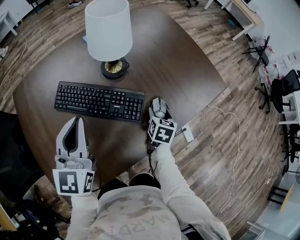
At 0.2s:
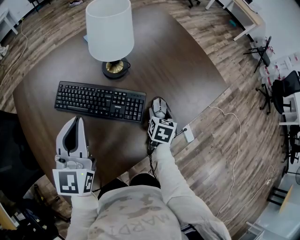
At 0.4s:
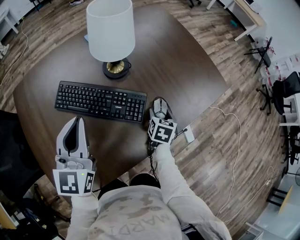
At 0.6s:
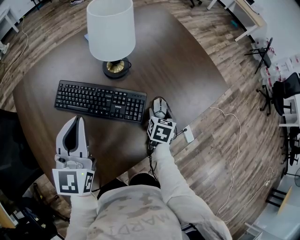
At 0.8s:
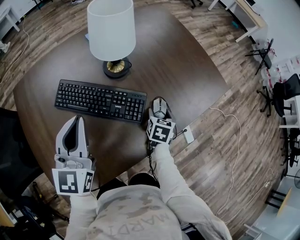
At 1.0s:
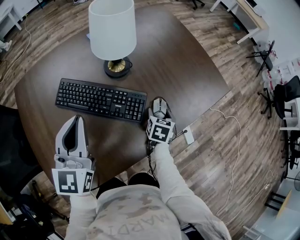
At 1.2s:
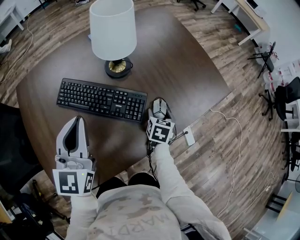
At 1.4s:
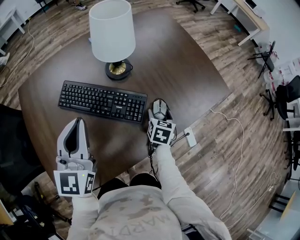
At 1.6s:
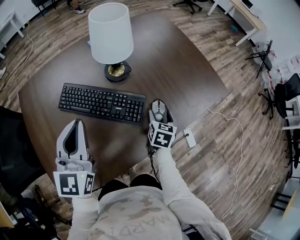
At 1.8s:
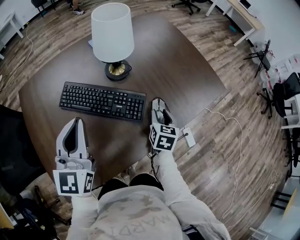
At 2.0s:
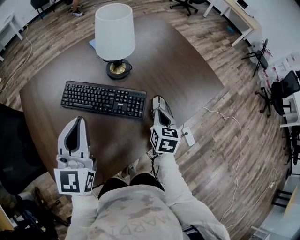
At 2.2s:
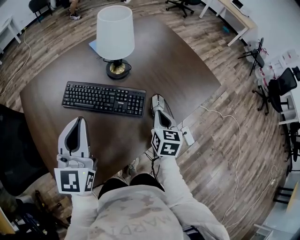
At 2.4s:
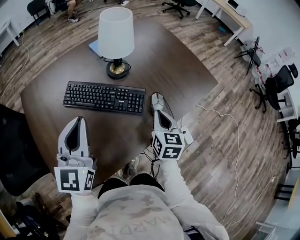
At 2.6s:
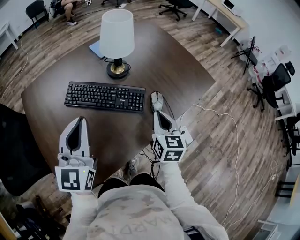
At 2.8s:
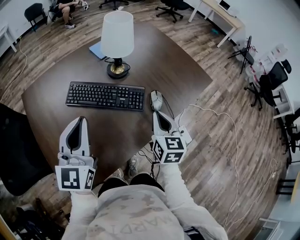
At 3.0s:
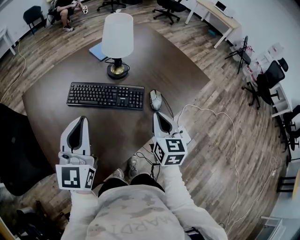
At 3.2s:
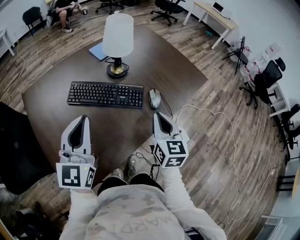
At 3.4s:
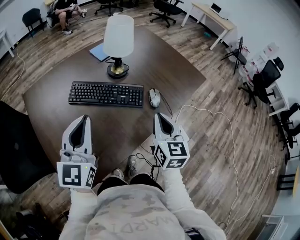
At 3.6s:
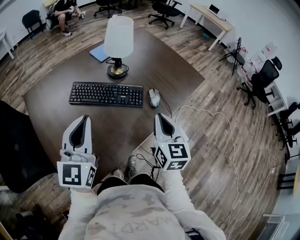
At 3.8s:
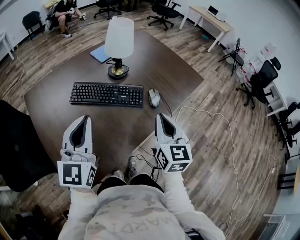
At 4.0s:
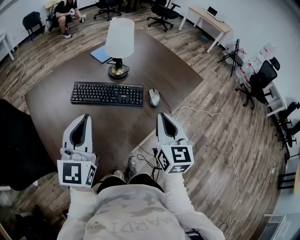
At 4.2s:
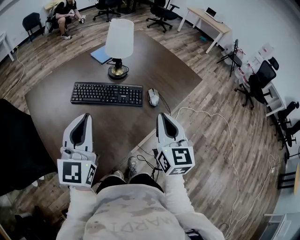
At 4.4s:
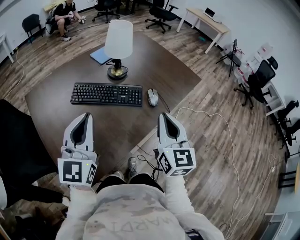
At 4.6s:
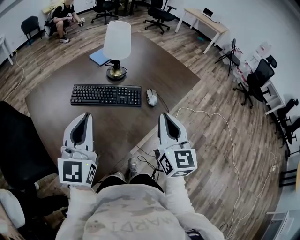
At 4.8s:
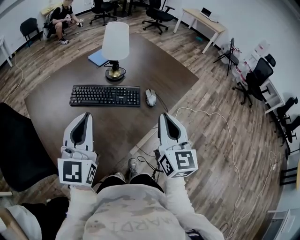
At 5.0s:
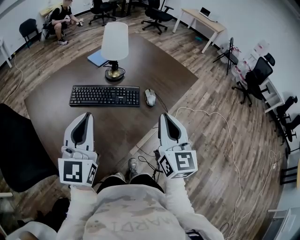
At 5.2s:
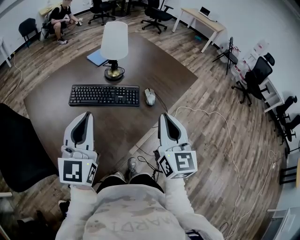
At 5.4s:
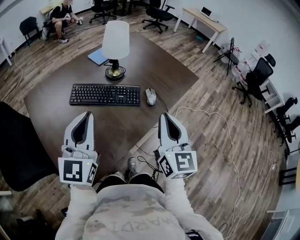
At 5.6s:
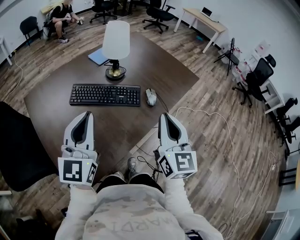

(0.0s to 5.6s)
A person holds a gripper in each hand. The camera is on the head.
0.0s - 1.4s: The grippers move only a little.
1.4s - 2.8s: The right gripper goes some 25 cm upward and backward, rotates roughly 30 degrees, and closes. Meanwhile the left gripper heads backward, covering roughly 10 cm.
2.8s - 4.2s: The left gripper goes about 10 cm backward; the right gripper is displaced backward and upward by some 15 cm.
4.2s - 5.6s: The grippers stay close to where they were, moving slightly.

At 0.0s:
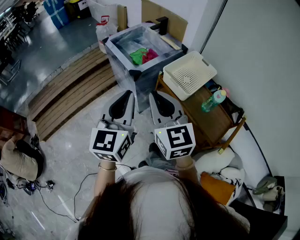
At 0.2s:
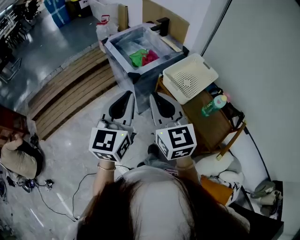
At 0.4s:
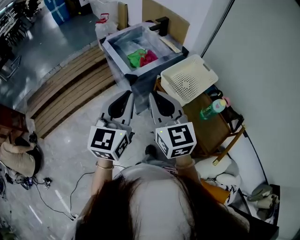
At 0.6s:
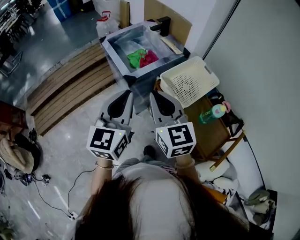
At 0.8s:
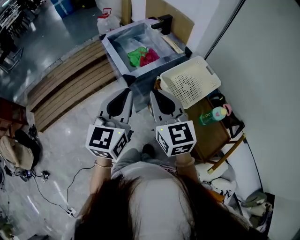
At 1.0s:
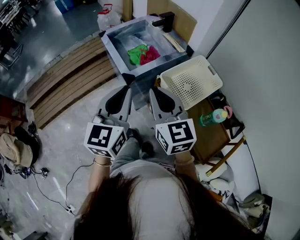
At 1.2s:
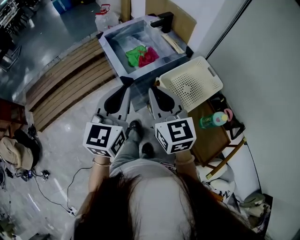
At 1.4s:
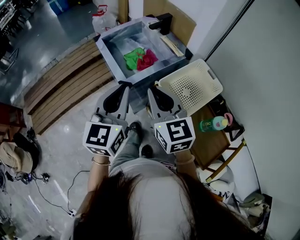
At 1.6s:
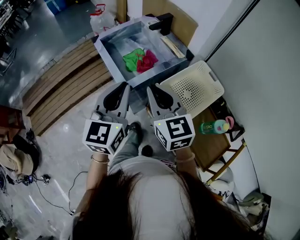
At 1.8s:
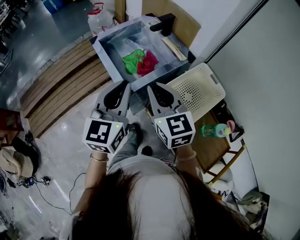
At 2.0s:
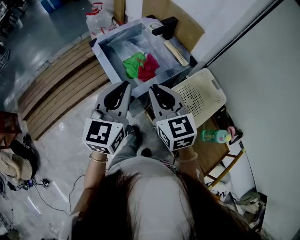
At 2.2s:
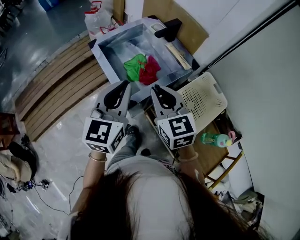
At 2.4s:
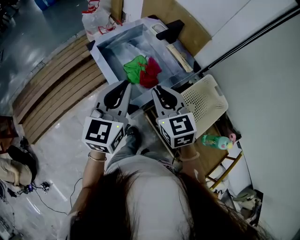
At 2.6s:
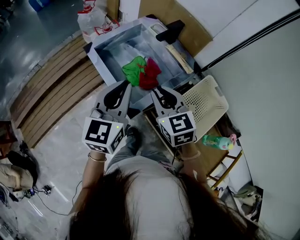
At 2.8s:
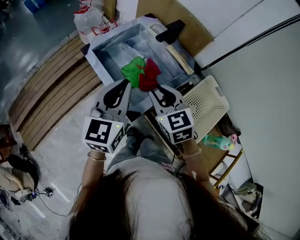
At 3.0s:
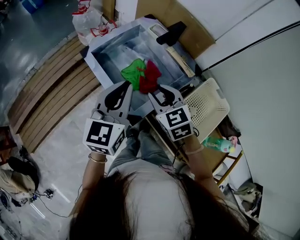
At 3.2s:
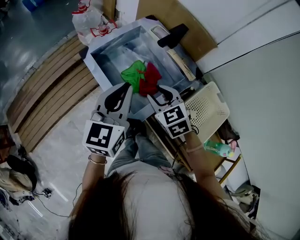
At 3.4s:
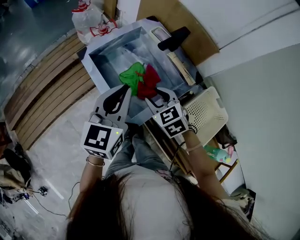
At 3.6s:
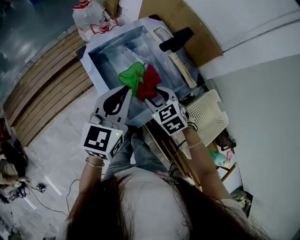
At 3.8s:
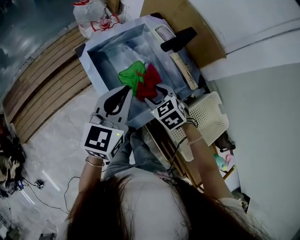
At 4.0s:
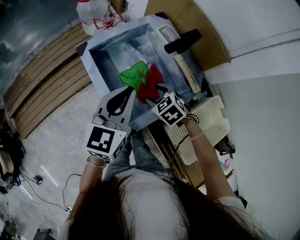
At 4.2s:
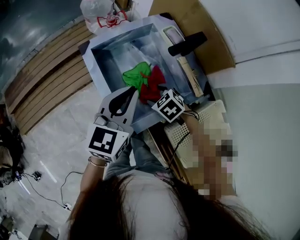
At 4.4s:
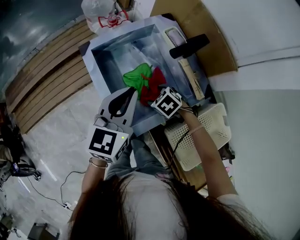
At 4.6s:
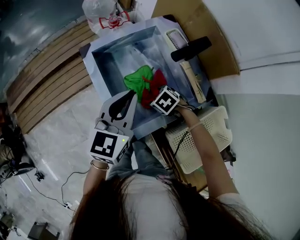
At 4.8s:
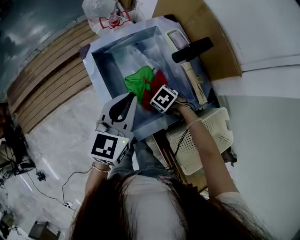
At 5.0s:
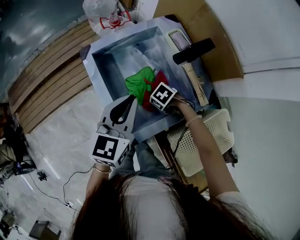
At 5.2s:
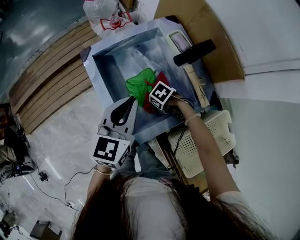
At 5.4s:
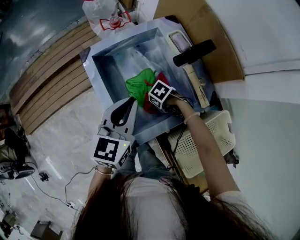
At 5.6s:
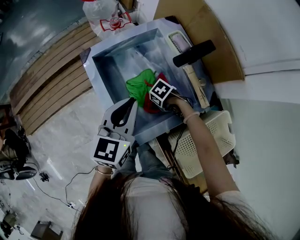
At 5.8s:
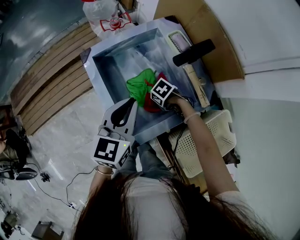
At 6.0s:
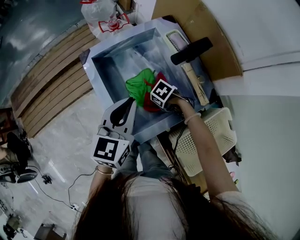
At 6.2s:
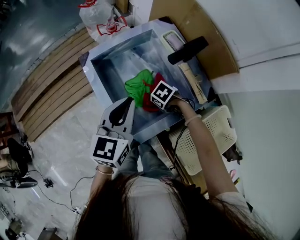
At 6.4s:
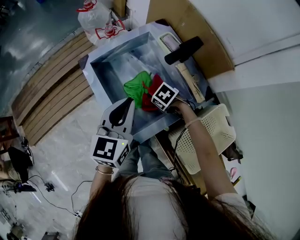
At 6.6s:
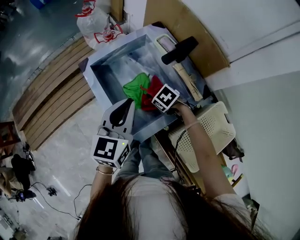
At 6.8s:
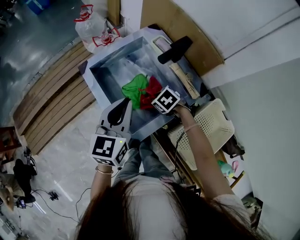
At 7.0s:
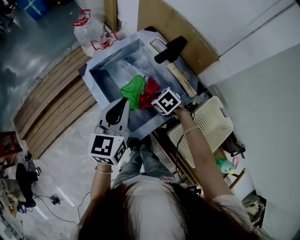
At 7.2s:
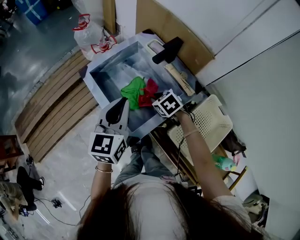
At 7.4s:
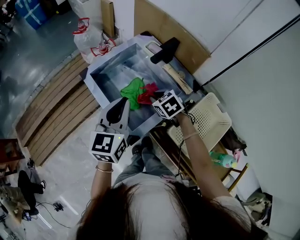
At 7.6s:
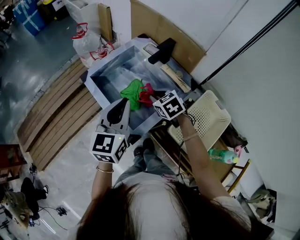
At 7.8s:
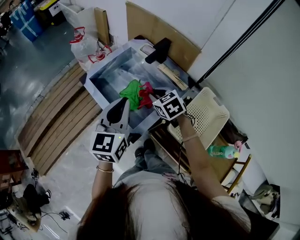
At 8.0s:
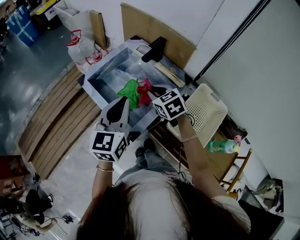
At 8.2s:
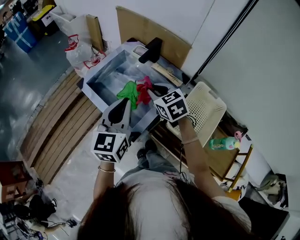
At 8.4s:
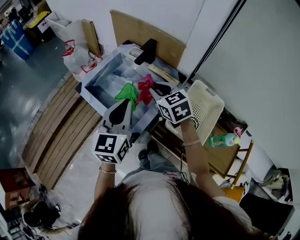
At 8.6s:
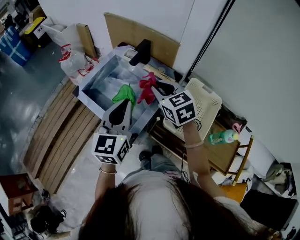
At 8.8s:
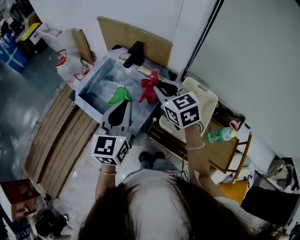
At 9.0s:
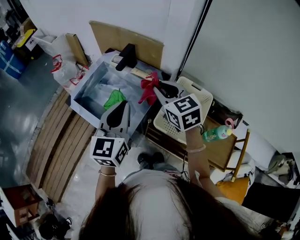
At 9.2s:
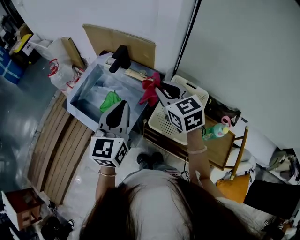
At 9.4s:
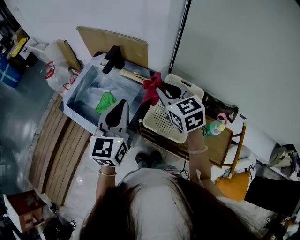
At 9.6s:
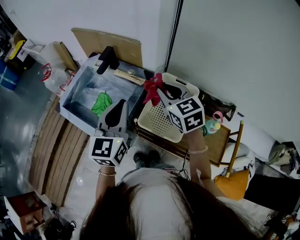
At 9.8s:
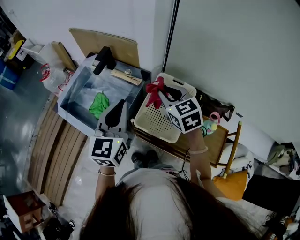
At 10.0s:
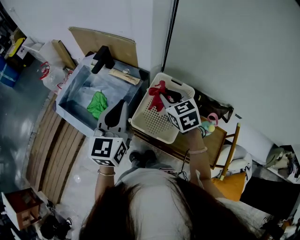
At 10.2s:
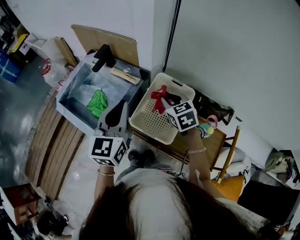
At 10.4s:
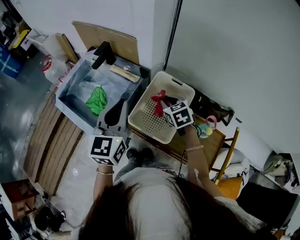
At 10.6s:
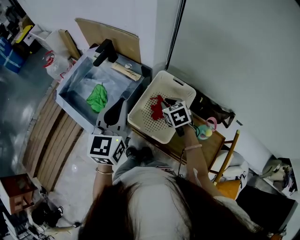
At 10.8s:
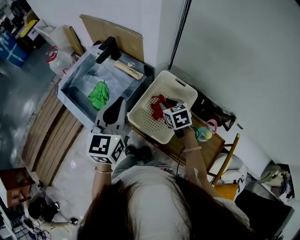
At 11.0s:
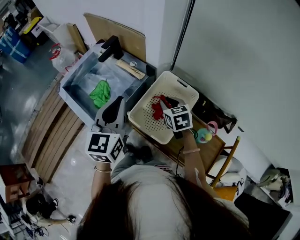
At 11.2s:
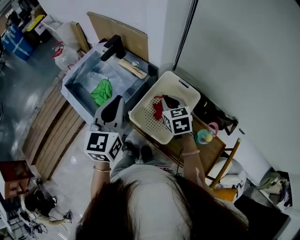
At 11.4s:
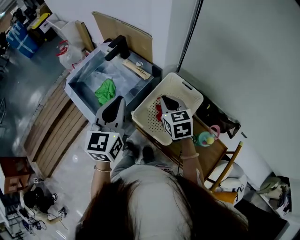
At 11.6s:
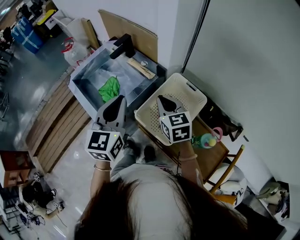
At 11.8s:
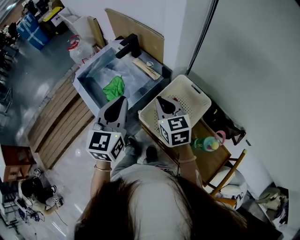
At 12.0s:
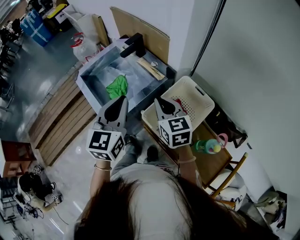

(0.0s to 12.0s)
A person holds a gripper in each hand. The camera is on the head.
0.0s - 1.6s: Both grippers move forward, about 25 cm.
1.6s - 3.0s: The right gripper travels forward and downward by about 25 cm, turns by some 30 degrees, and opens up. Meanwhile the left gripper travels forward by approximately 20 cm.
3.0s - 4.4s: The left gripper moves about 10 cm, while the right gripper is displaced downward by some 20 cm, angles its fingers downward, by approximately 40 degrees, and opens up.
4.4s - 6.0s: The right gripper goes roughly 10 cm downward, changes its angle by roughly 20 degrees, and closes its fingers.
6.0s - 7.6s: The left gripper travels upward by some 10 cm. Meanwhile the right gripper travels upward by about 20 cm, and rotates about 50 degrees.
7.6s - 9.0s: The right gripper shifts roughly 20 cm upward and to the right, and changes its angle by roughly 30 degrees; the left gripper moves to the right, about 10 cm.
9.0s - 10.4s: The left gripper travels to the right by some 15 cm; the right gripper goes about 25 cm to the right and downward, and rotates approximately 20 degrees.
10.4s - 12.0s: The right gripper moves to the left and upward, about 15 cm, and changes its angle by about 30 degrees, while the left gripper travels to the left by roughly 5 cm.

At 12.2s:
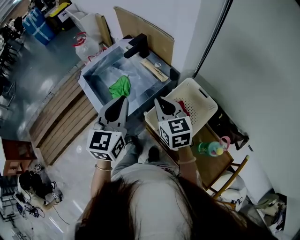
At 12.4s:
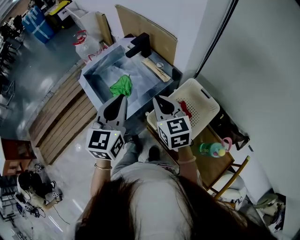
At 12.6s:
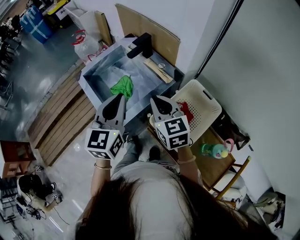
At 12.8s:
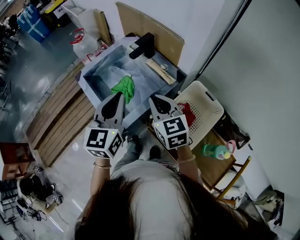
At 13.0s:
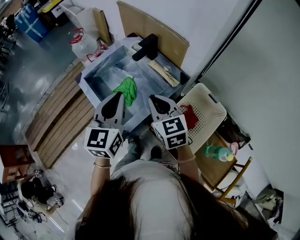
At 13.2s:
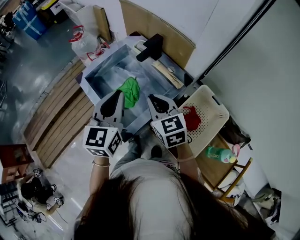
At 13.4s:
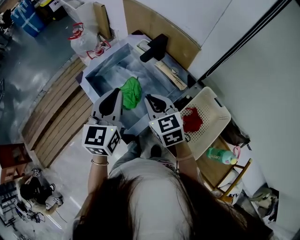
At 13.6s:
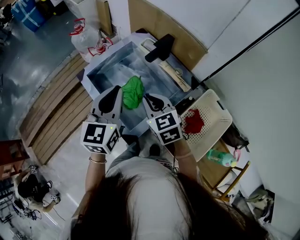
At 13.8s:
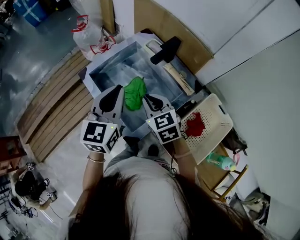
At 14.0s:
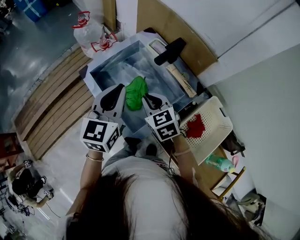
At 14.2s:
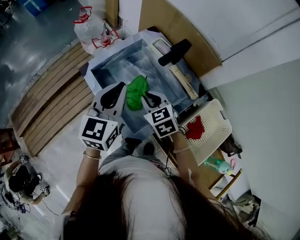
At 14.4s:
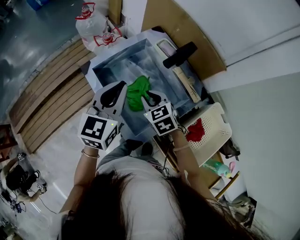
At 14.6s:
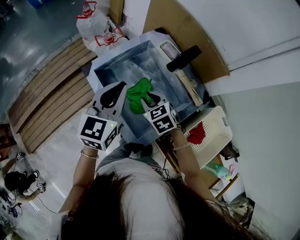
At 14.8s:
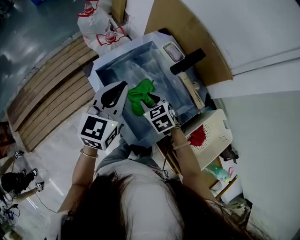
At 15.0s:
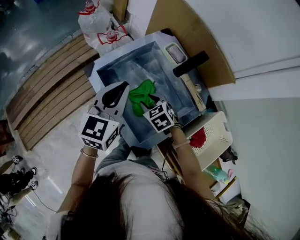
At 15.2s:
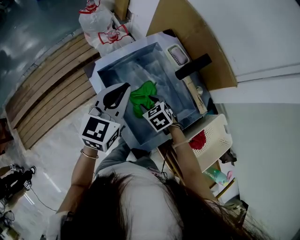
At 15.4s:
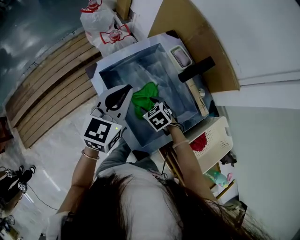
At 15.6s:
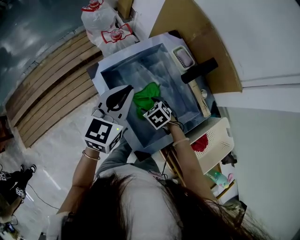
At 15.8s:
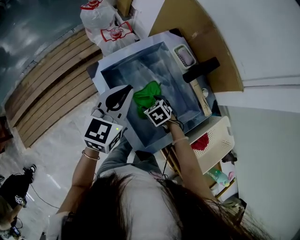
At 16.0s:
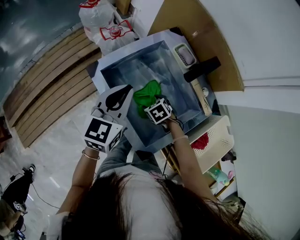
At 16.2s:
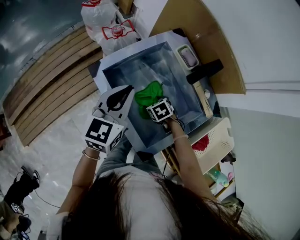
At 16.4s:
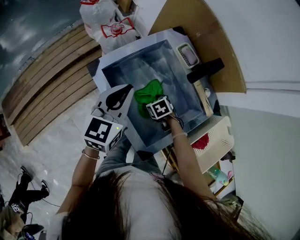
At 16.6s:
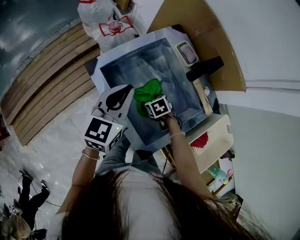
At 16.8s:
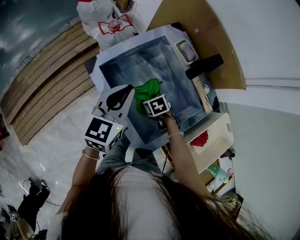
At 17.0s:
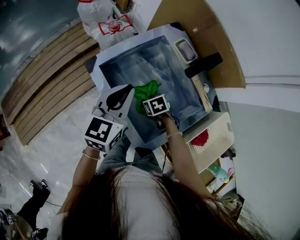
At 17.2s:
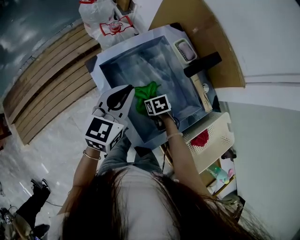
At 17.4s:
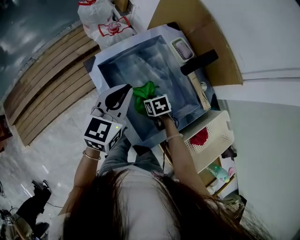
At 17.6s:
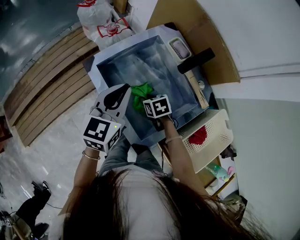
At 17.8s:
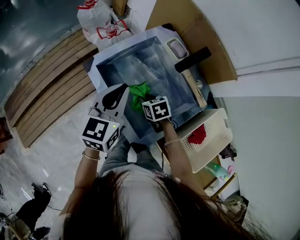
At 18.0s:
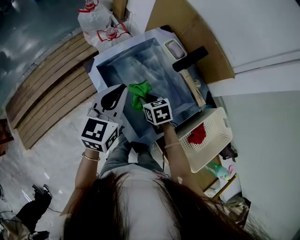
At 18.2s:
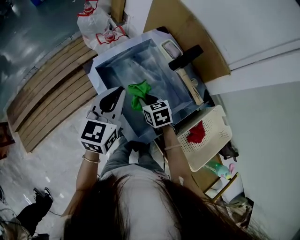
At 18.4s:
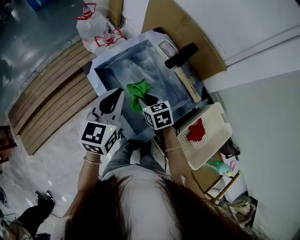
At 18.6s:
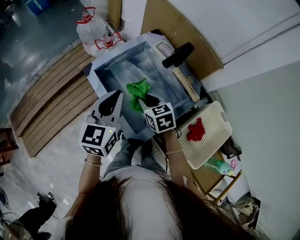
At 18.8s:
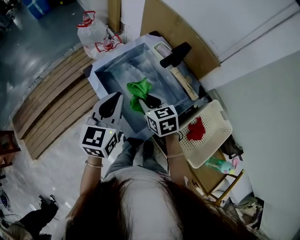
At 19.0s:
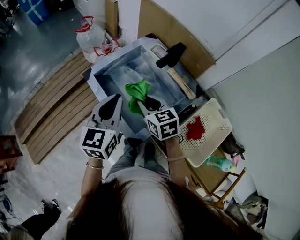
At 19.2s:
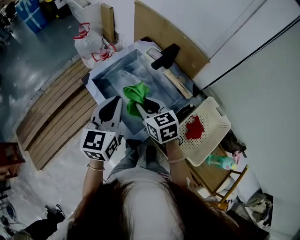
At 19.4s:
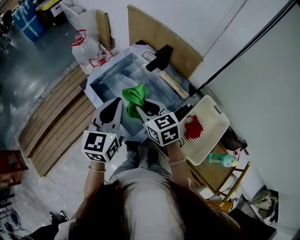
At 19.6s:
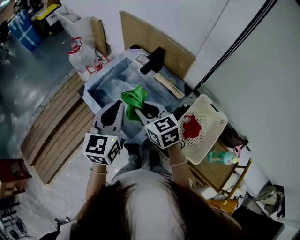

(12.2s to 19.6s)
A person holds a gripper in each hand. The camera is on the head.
12.2s - 13.6s: The left gripper moves forward and to the left, approximately 20 cm. The right gripper travels to the left and forward by about 20 cm.
13.6s - 15.2s: The left gripper travels forward, to the left and downward by about 15 cm, while the right gripper moves downward, forward and to the left, approximately 20 cm, tilts its fingers some 30 degrees downward, and opens its fingers.
15.2s - 16.6s: The left gripper changes place by roughly 5 cm. The right gripper is displaced downward by approximately 10 cm, and turns by about 20 degrees.
16.6s - 18.2s: The right gripper is displaced upward by roughly 15 cm, changes its angle by roughly 20 degrees, and closes up, while the left gripper moves backward, some 5 cm.
18.2s - 19.6s: The left gripper shifts about 15 cm backward, to the right and upward. Meanwhile the right gripper travels upward and backward by approximately 20 cm, and swivels about 30 degrees.
